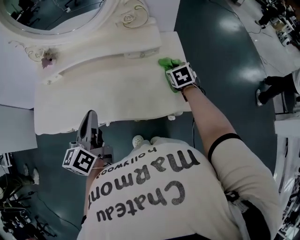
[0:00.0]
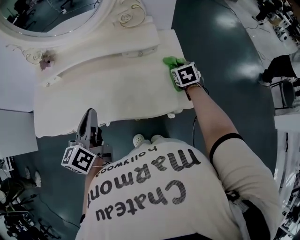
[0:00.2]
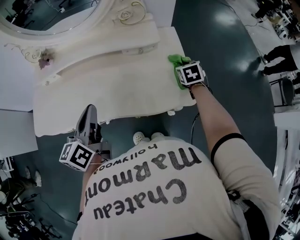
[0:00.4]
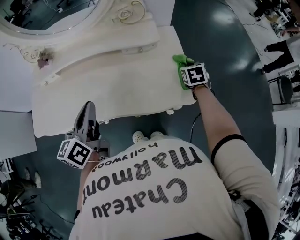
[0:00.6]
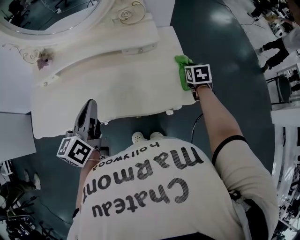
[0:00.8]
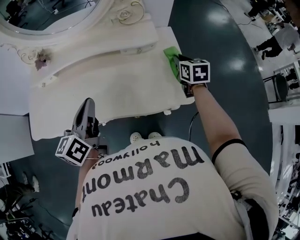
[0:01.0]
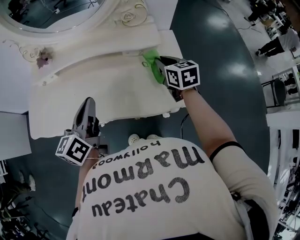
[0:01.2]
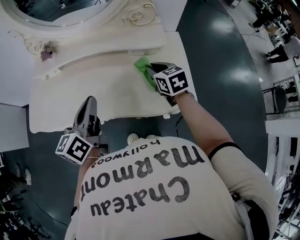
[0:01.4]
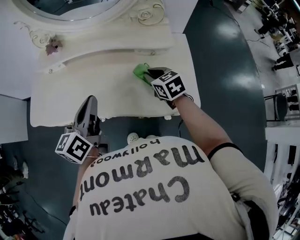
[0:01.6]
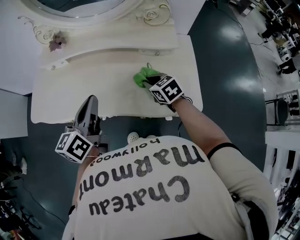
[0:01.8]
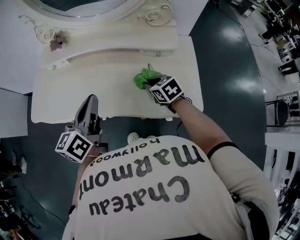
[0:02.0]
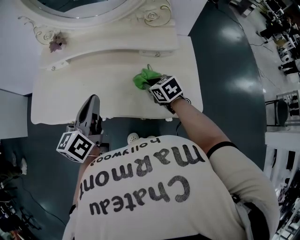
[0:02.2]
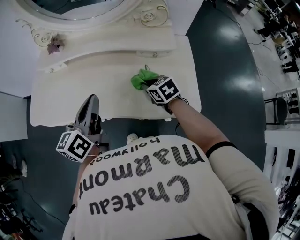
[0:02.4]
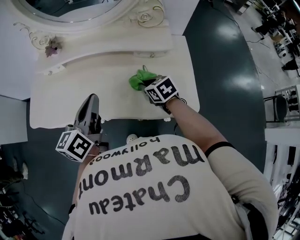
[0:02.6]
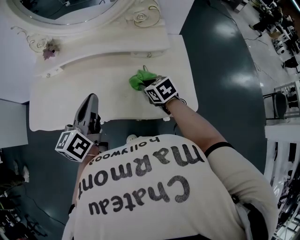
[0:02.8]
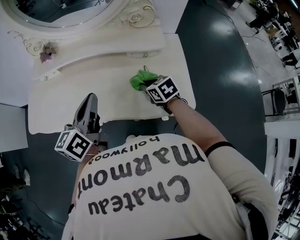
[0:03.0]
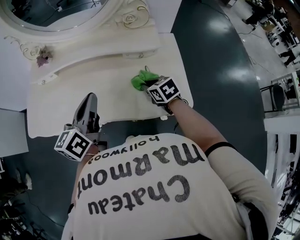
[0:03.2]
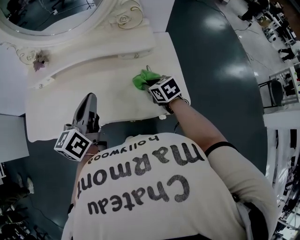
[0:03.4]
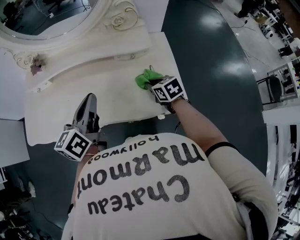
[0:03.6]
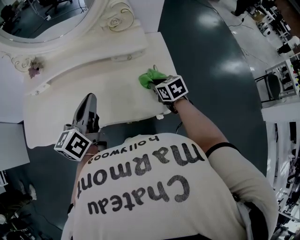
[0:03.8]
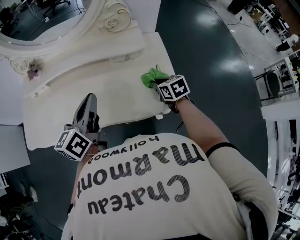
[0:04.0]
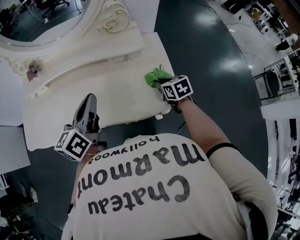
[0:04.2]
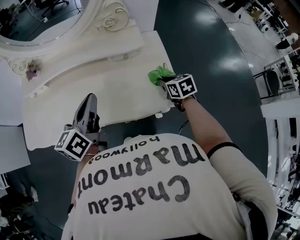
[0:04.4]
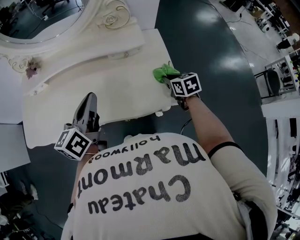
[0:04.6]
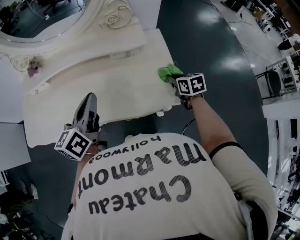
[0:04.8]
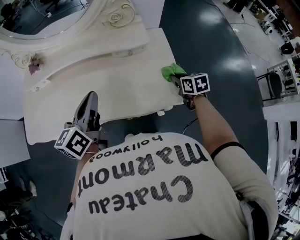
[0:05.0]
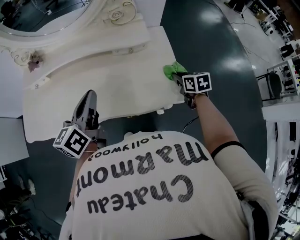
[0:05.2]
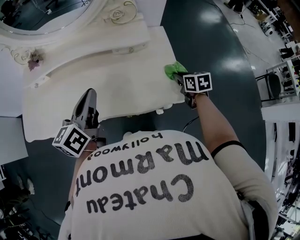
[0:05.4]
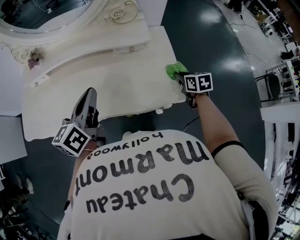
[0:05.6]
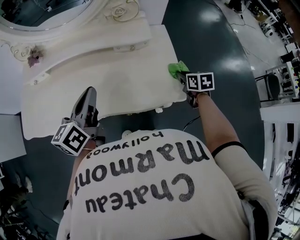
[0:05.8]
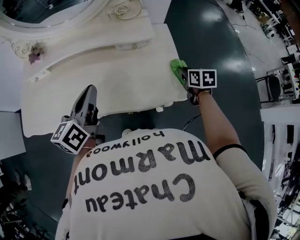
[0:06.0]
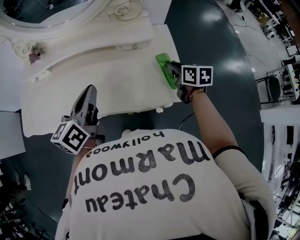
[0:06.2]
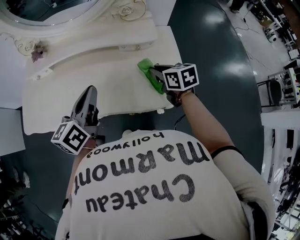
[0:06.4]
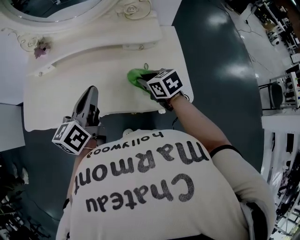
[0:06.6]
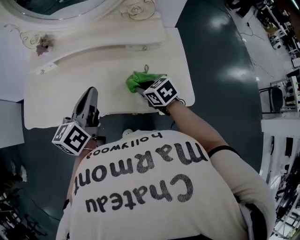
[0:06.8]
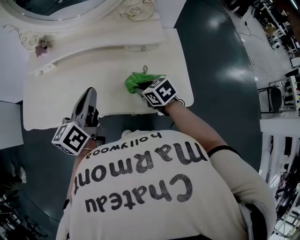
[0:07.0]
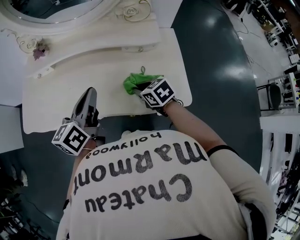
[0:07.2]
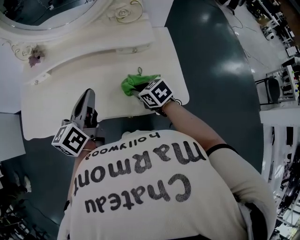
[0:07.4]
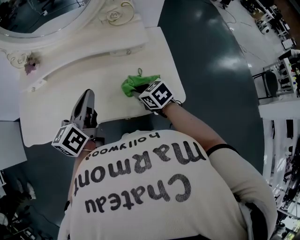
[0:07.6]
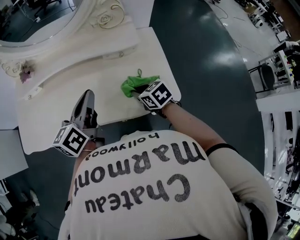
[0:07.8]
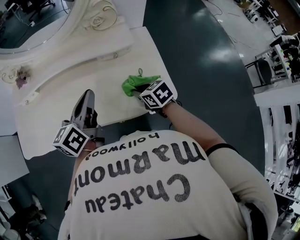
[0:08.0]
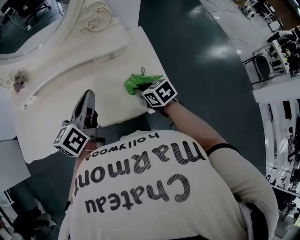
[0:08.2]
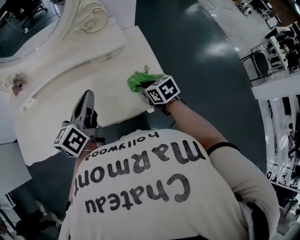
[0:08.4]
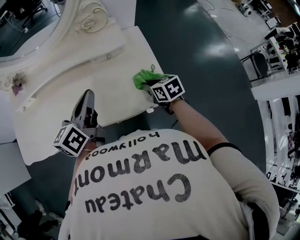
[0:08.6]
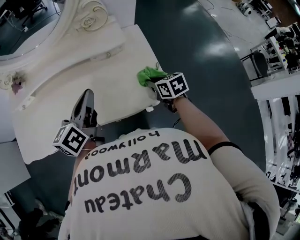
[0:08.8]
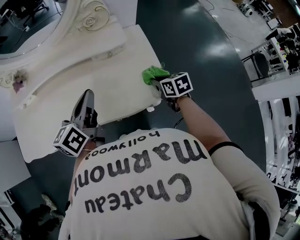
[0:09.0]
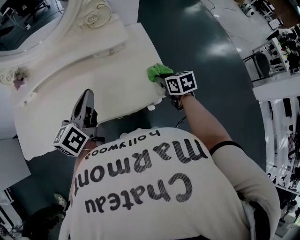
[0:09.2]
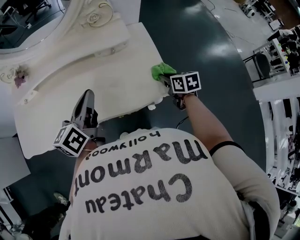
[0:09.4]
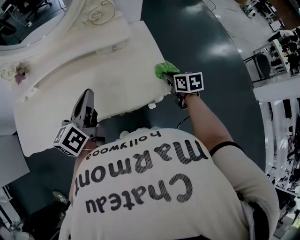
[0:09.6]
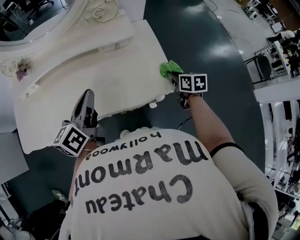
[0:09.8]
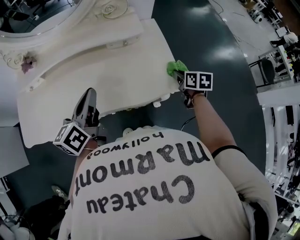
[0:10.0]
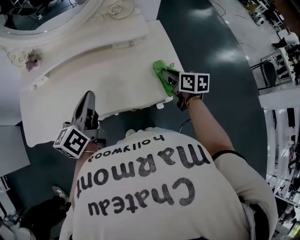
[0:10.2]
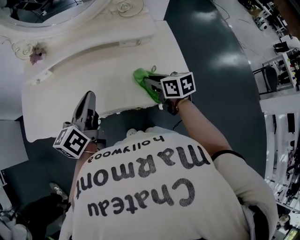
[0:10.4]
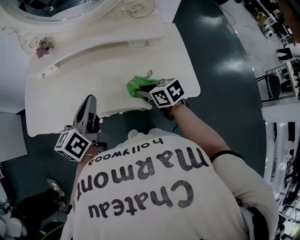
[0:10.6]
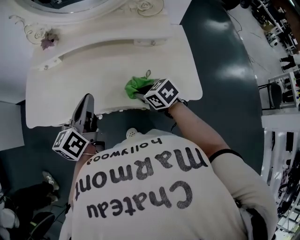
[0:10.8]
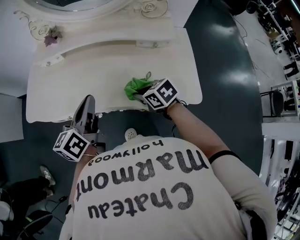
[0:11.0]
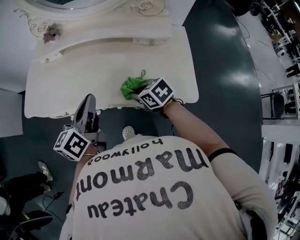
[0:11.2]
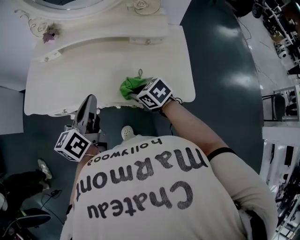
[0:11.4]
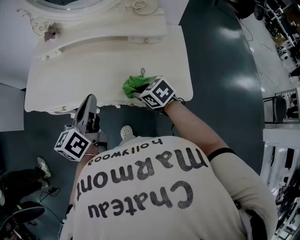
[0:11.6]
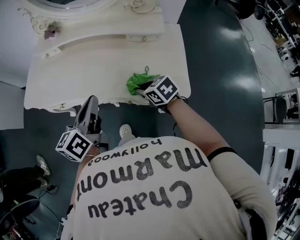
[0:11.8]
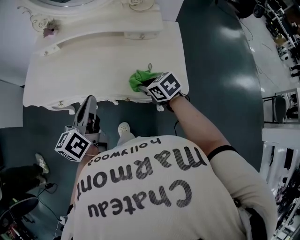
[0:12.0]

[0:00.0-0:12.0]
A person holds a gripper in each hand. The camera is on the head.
0:00.0 to 0:01.6: The right gripper heads to the left, covering roughly 15 cm, and turns by some 20 degrees.
0:01.6 to 0:03.0: The right gripper heads downward, covering about 5 cm.
0:03.0 to 0:04.4: The left gripper shifts approximately 5 cm to the right. The right gripper moves to the right, about 15 cm.
0:04.4 to 0:06.0: The right gripper heads to the right, covering some 5 cm.
0:06.0 to 0:07.6: The right gripper shifts roughly 20 cm to the left, and rotates roughly 30 degrees.
0:07.6 to 0:09.0: The left gripper moves to the right, approximately 5 cm. Meanwhile the right gripper shifts some 15 cm to the right, and swivels roughly 30 degrees.
0:09.0 to 0:10.4: The grippers both shift to the left by roughly 15 cm.
0:10.4 to 0:12.0: The right gripper heads backward, covering about 5 cm, moves approximately 10 cm to the left and comes back, and changes its angle by about 40 degrees, while the left gripper heads backward, covering about 10 cm.

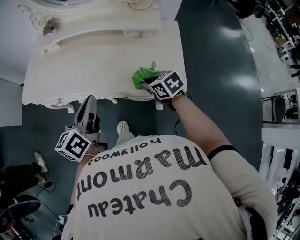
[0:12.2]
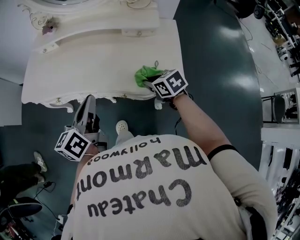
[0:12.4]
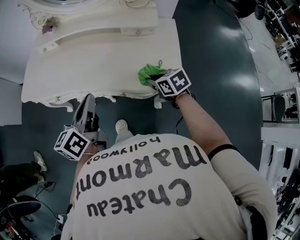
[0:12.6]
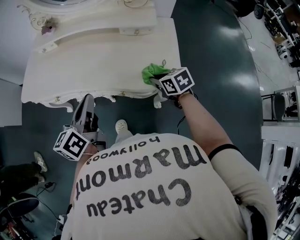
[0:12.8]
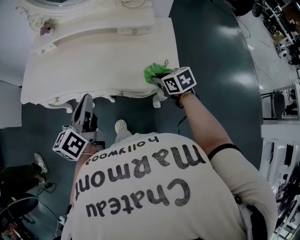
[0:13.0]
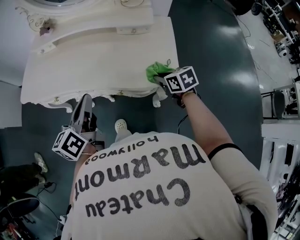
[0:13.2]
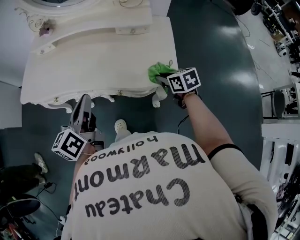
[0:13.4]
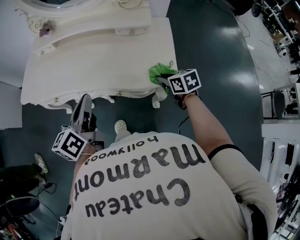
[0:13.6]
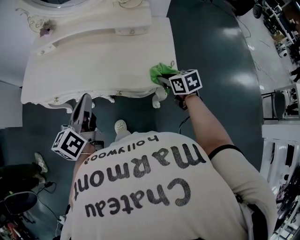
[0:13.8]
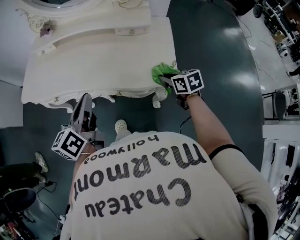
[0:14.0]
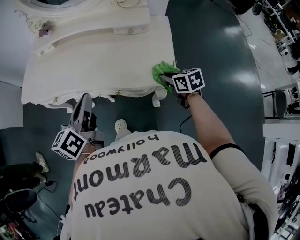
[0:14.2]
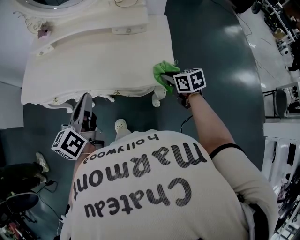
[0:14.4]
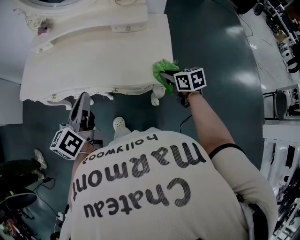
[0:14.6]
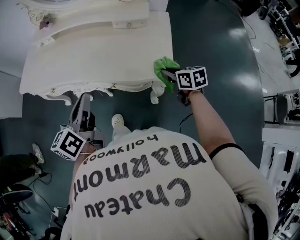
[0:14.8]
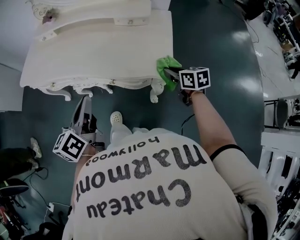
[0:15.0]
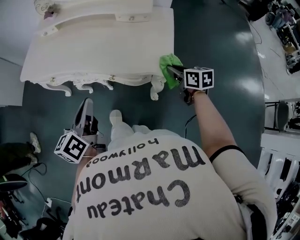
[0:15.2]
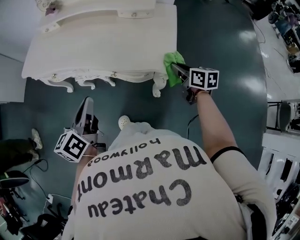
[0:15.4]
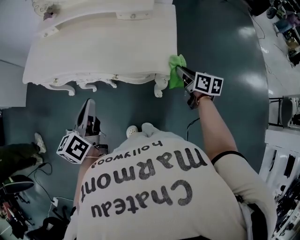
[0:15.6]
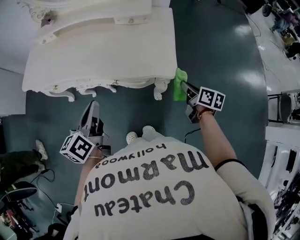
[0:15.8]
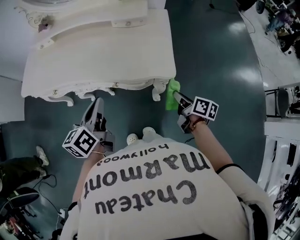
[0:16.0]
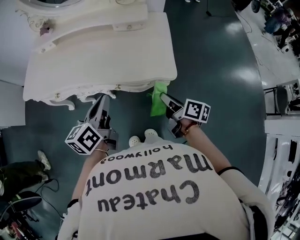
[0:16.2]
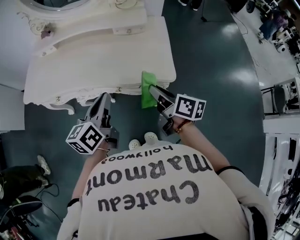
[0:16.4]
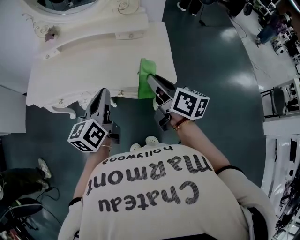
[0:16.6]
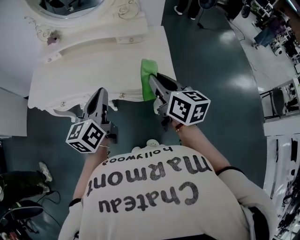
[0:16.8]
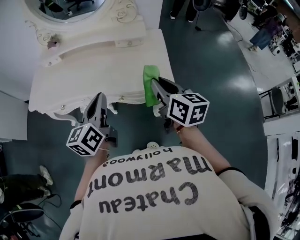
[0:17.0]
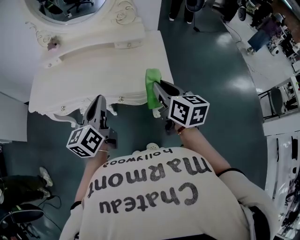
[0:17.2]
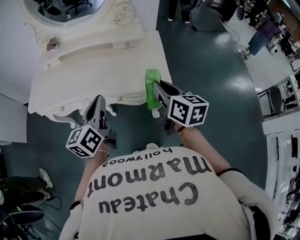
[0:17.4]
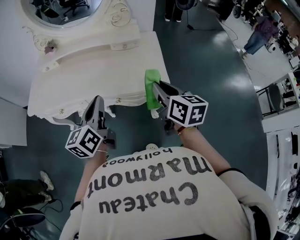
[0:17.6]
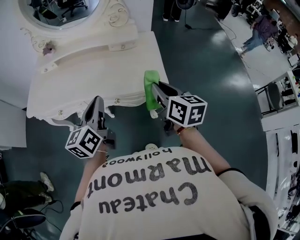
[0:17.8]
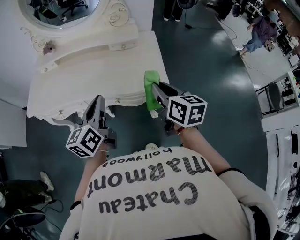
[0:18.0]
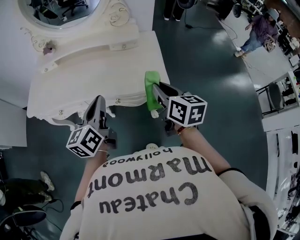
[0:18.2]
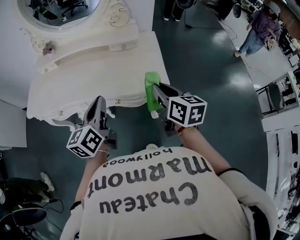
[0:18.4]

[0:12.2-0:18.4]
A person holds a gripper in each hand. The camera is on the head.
0:12.2 to 0:13.8: The right gripper heads to the right, covering some 10 cm.
0:13.8 to 0:15.4: The left gripper goes about 10 cm backward; the right gripper heads to the right, covering about 5 cm.
0:15.4 to 0:16.8: The right gripper shifts about 25 cm upward and to the left, and turns by about 20 degrees, while the left gripper is displaced upward and forward by approximately 10 cm.
0:16.8 to 0:18.4: The grippers make only small movements.

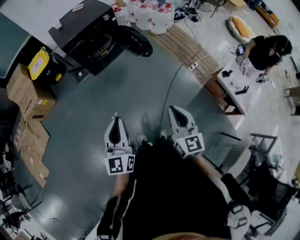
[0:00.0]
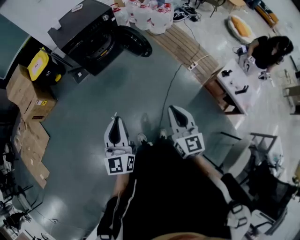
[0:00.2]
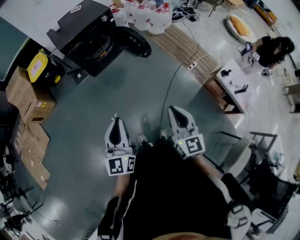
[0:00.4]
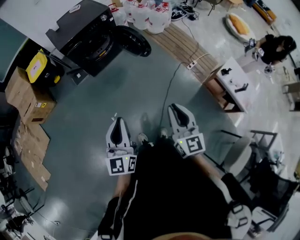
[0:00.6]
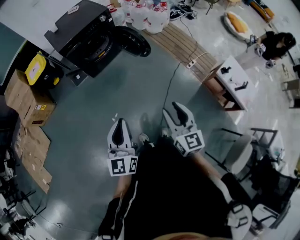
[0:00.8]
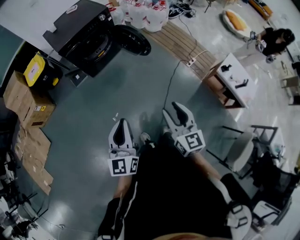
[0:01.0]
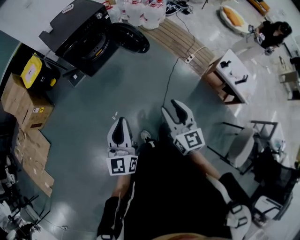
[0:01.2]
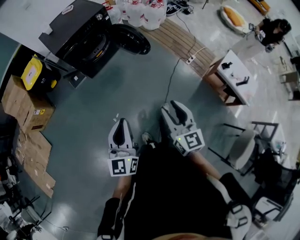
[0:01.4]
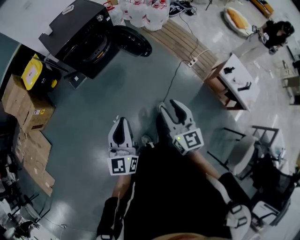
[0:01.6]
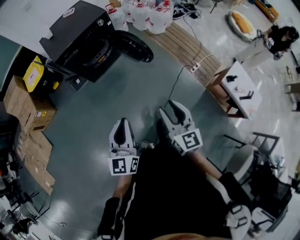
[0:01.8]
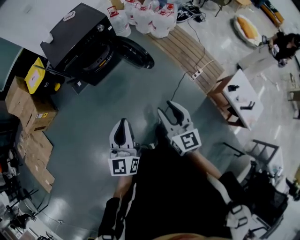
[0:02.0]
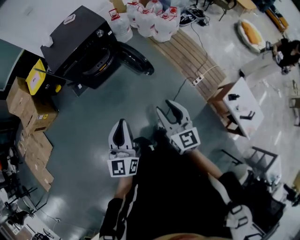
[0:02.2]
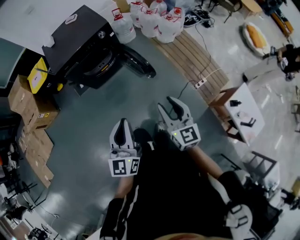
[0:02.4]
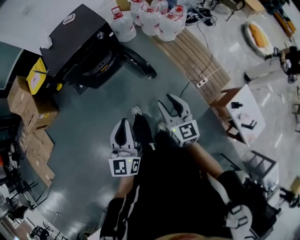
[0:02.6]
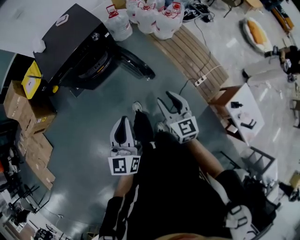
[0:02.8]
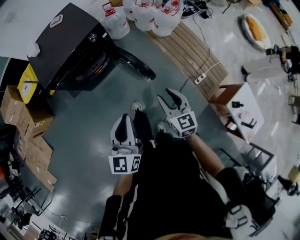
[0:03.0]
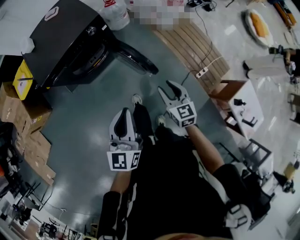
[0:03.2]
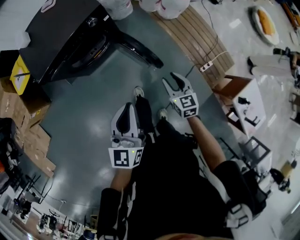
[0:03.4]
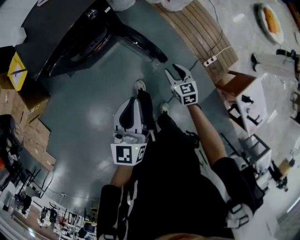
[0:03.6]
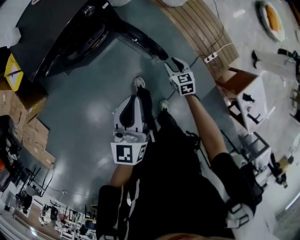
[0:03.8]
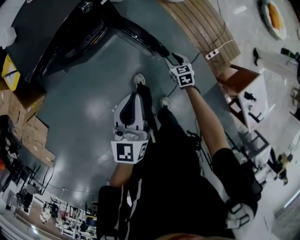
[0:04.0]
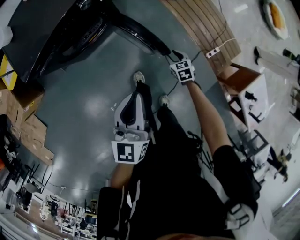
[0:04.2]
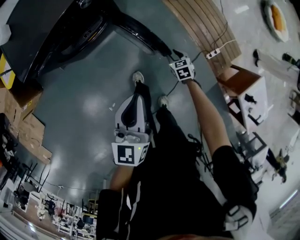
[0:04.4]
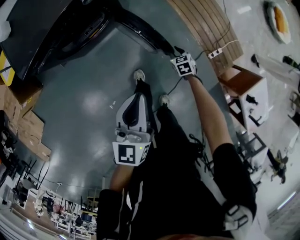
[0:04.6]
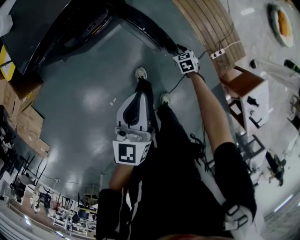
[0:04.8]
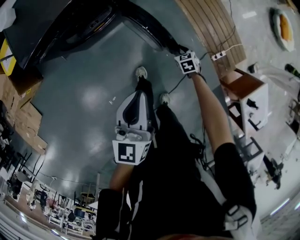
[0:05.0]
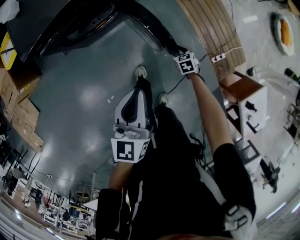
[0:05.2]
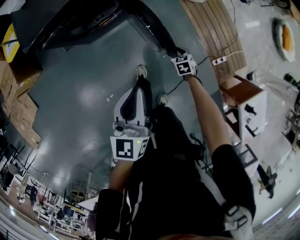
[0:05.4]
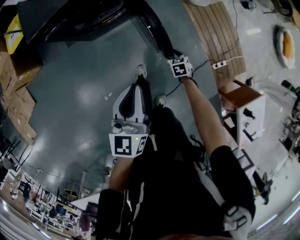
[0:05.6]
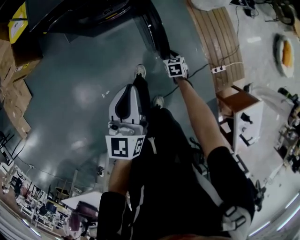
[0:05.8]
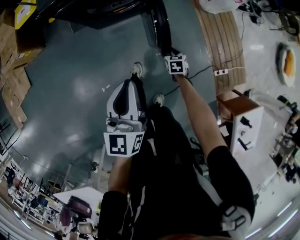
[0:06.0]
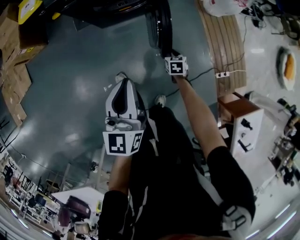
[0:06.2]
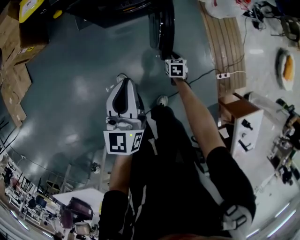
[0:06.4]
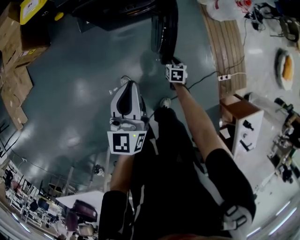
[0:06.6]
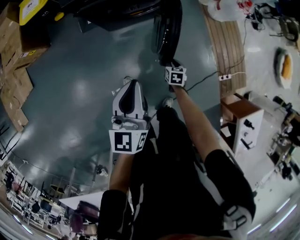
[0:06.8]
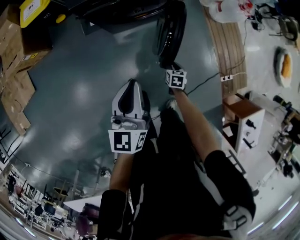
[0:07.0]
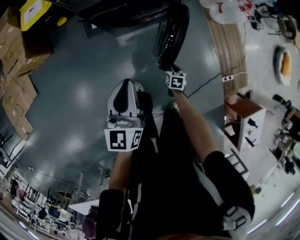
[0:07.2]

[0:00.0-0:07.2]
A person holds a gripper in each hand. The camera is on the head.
0:00.0 to 0:01.4: The left gripper moves some 5 cm, while the right gripper goes approximately 5 cm to the left, and opens its fingers.
0:01.4 to 0:02.8: The left gripper is displaced forward and to the right by about 40 cm, while the right gripper is displaced forward by some 40 cm.
0:02.8 to 0:04.4: The right gripper moves downward and forward, approximately 50 cm, and tilts its fingers some 40 degrees downward, while the left gripper shifts roughly 25 cm forward and downward.
0:04.4 to 0:05.8: The left gripper travels backward and to the left by roughly 10 cm. The right gripper is displaced to the left by roughly 10 cm.
0:05.8 to 0:07.2: Both grippers move to the left, about 25 cm.
